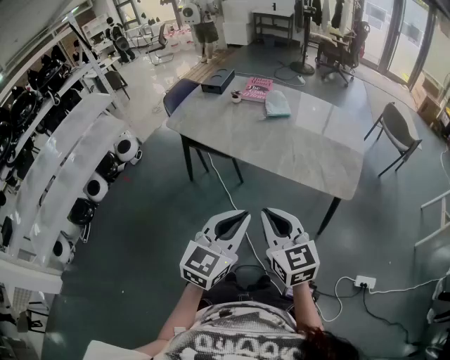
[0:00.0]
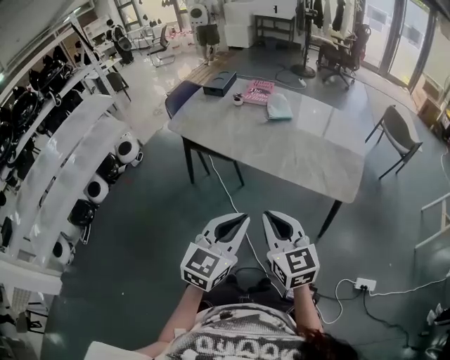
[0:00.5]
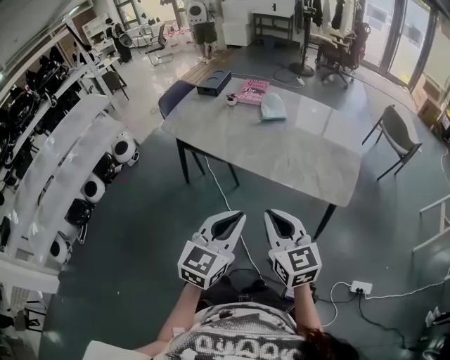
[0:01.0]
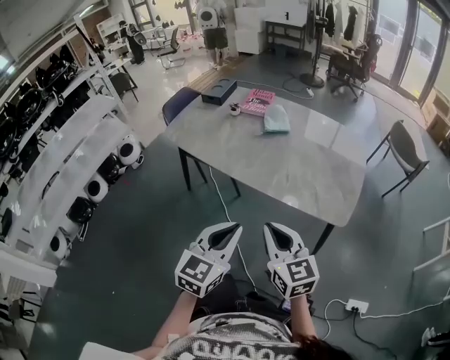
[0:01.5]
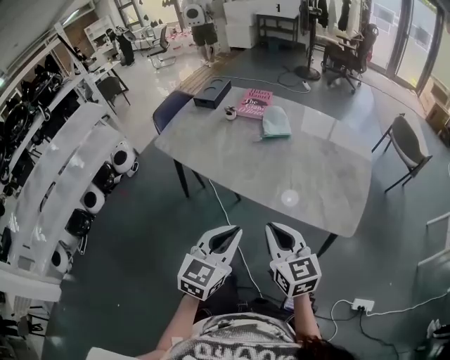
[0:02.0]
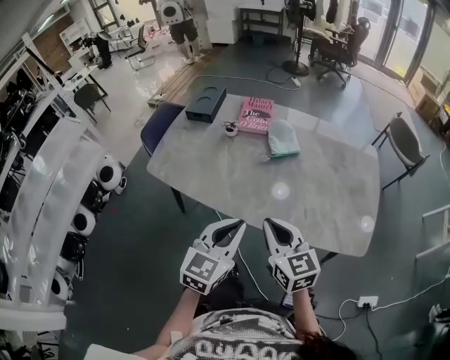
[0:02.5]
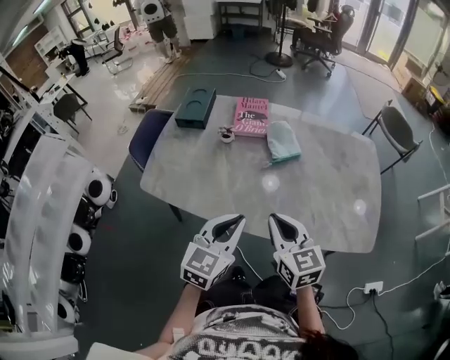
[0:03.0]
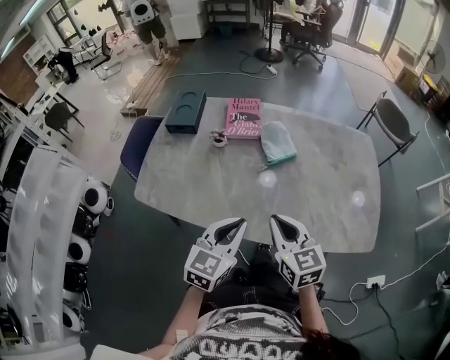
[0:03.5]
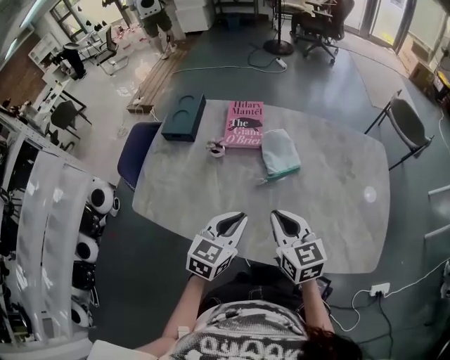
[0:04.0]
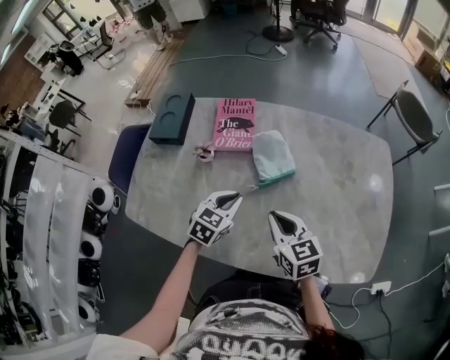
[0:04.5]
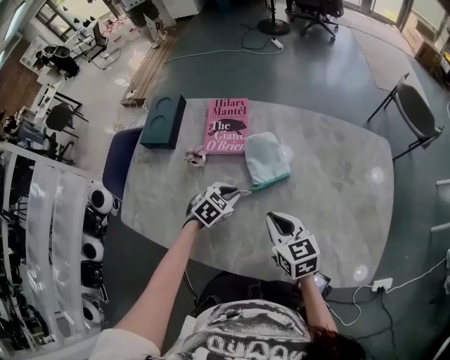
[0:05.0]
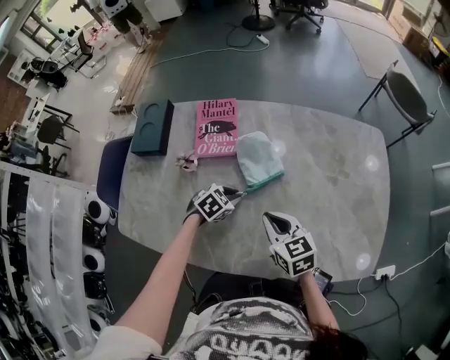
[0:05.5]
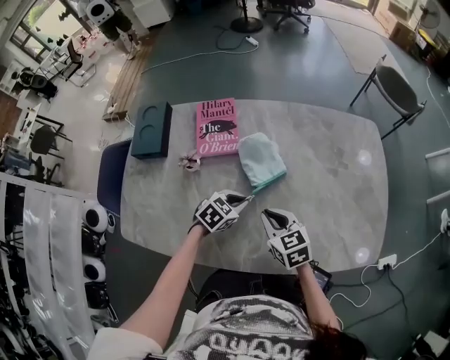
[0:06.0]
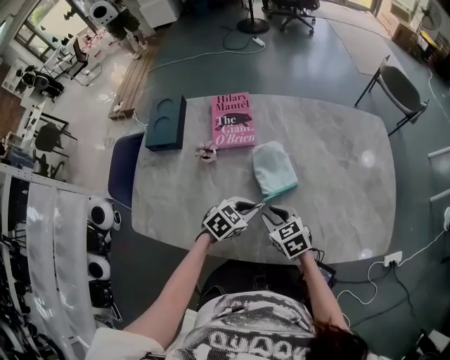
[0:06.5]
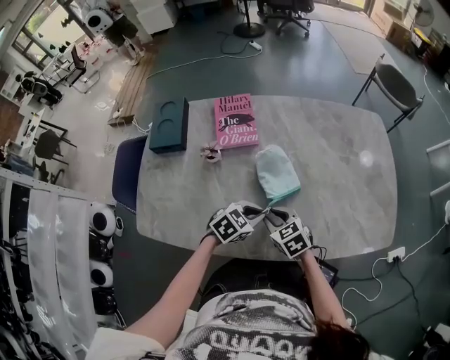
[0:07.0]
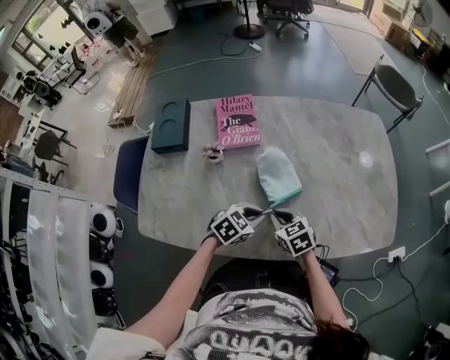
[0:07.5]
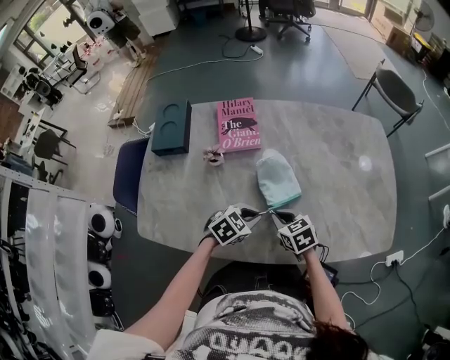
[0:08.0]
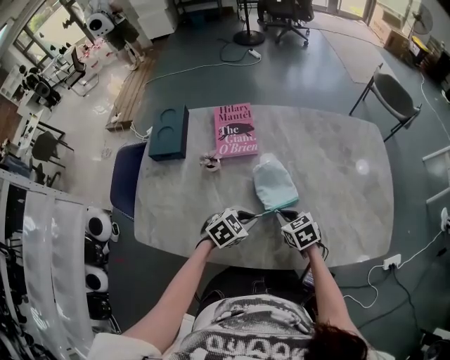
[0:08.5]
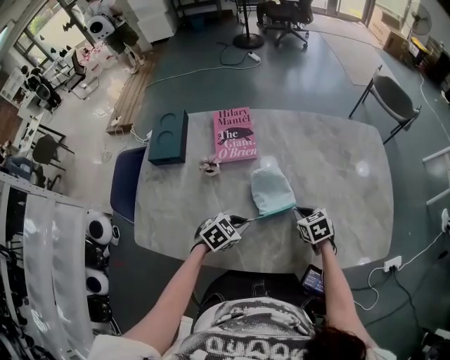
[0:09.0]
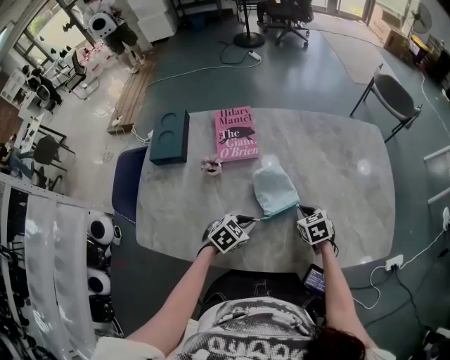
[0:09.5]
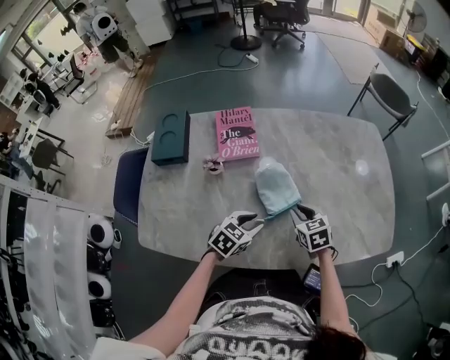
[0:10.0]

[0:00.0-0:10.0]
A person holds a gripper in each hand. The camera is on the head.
0:00.0 to 0:02.0: The left gripper goes approximately 15 cm forward and downward; the right gripper travels forward and to the right by approximately 15 cm.
0:02.0 to 0:04.0: The two grippers go roughly 35 cm forward.
0:04.0 to 0:06.0: The left gripper heads downward and forward, covering some 20 cm, and swivels roughly 40 degrees, while the right gripper heads downward and forward, covering some 15 cm.
0:06.0 to 0:08.0: The left gripper heads backward, covering approximately 10 cm. The right gripper is displaced downward by about 5 cm, and opens, then closes again.
0:08.0 to 0:10.0: The right gripper is displaced to the right and forward by roughly 10 cm; the left gripper opens its fingers.

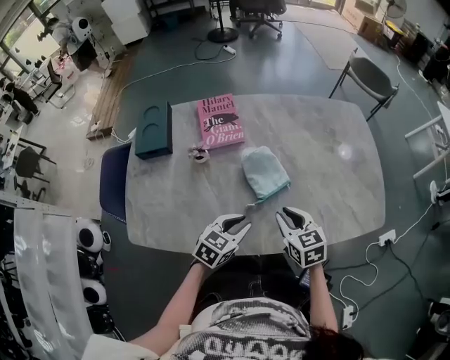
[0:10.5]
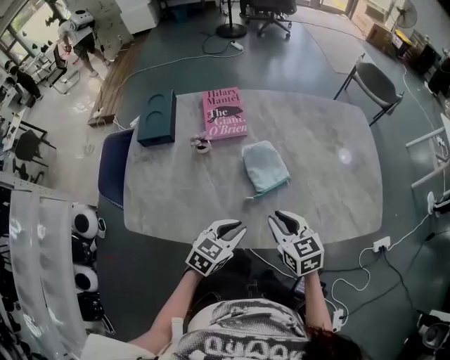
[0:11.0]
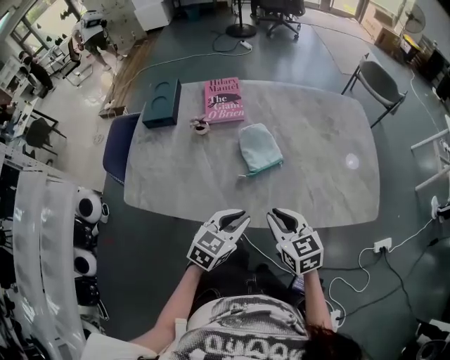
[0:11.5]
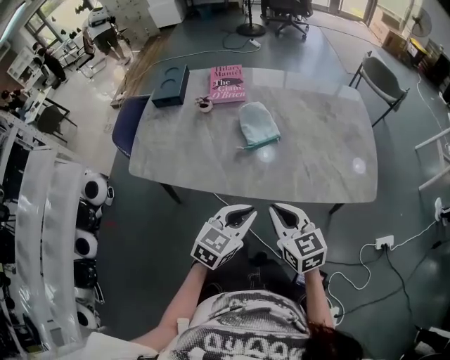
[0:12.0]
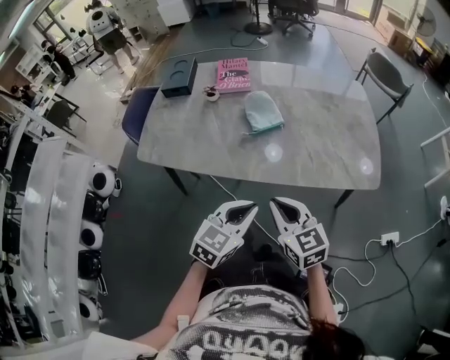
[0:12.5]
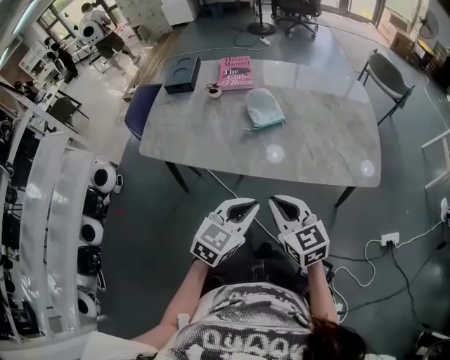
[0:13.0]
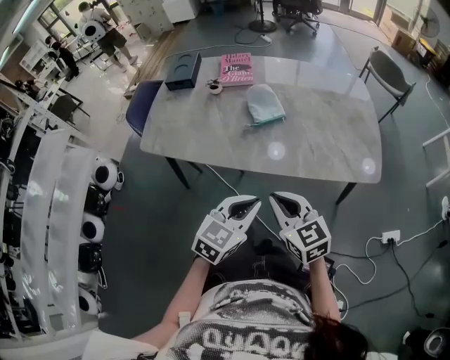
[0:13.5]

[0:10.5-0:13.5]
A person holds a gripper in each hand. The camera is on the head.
0:10.5 to 0:12.0: The right gripper shifts about 20 cm backward, and closes; the left gripper shifts roughly 20 cm backward, to the right and upward.
0:12.0 to 0:13.5: Both grippers travel together backward, approximately 5 cm.

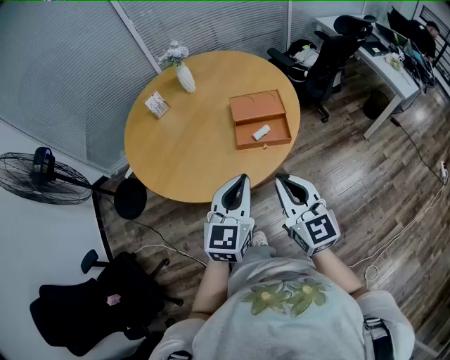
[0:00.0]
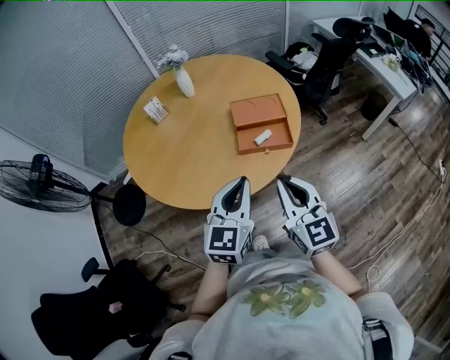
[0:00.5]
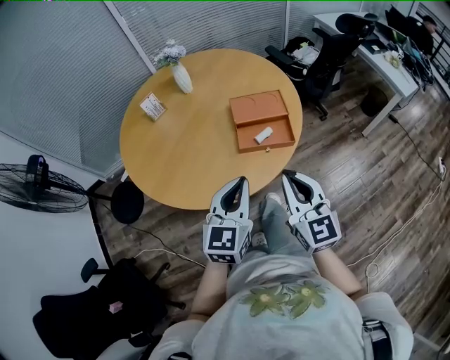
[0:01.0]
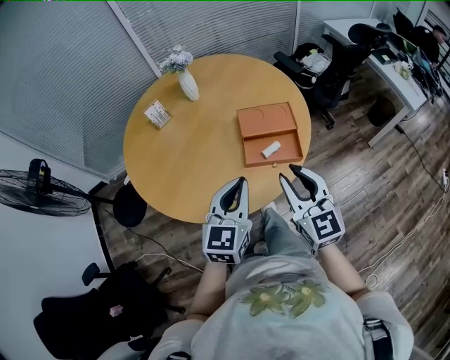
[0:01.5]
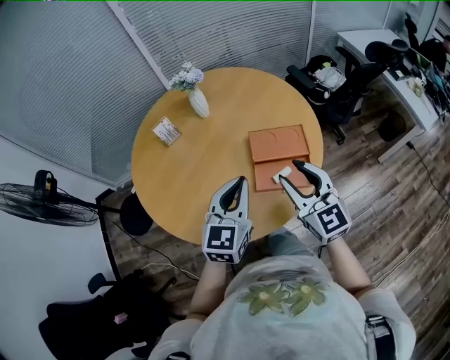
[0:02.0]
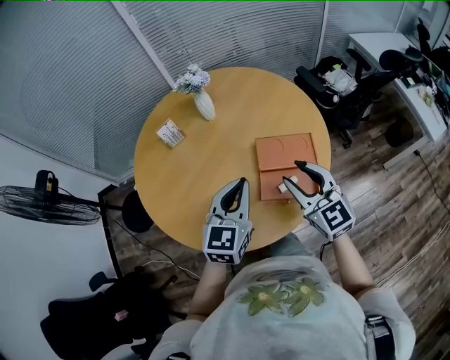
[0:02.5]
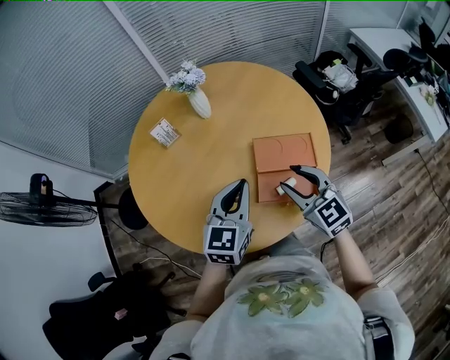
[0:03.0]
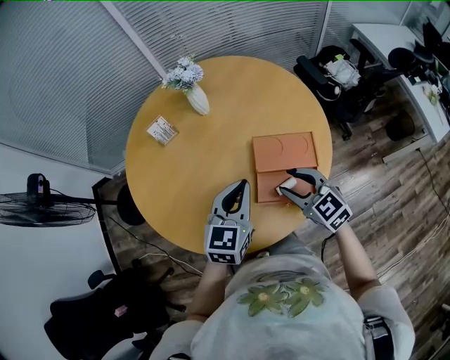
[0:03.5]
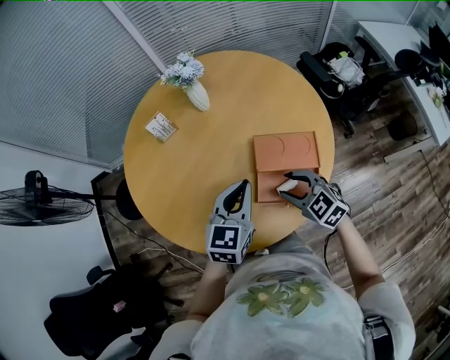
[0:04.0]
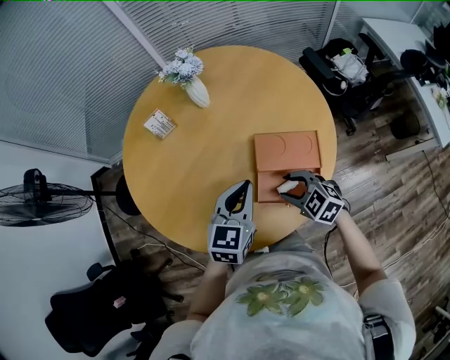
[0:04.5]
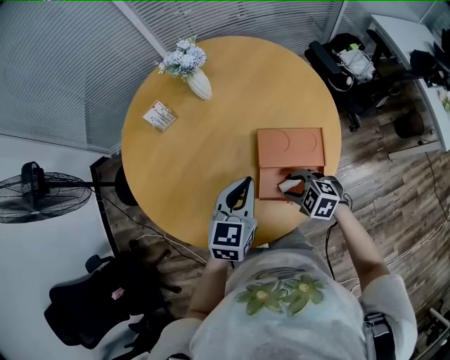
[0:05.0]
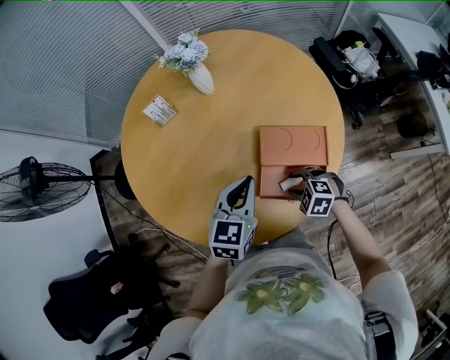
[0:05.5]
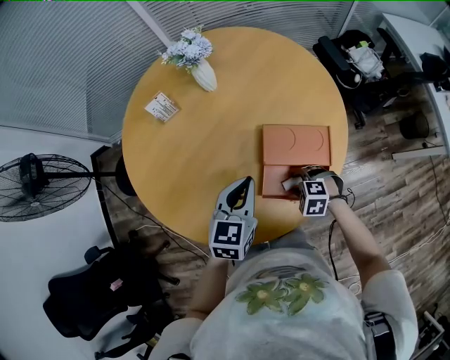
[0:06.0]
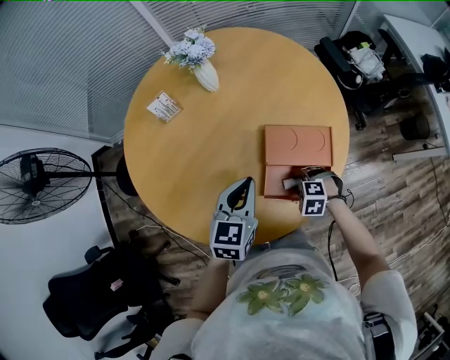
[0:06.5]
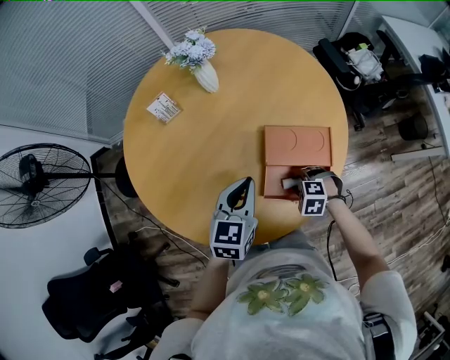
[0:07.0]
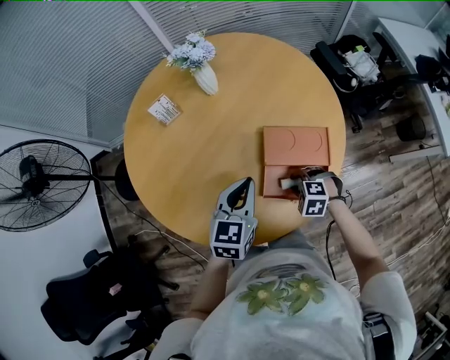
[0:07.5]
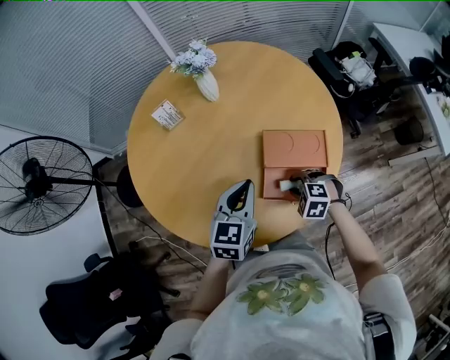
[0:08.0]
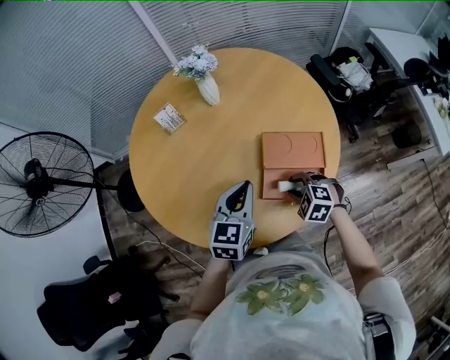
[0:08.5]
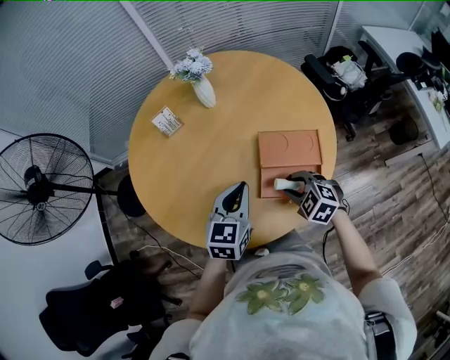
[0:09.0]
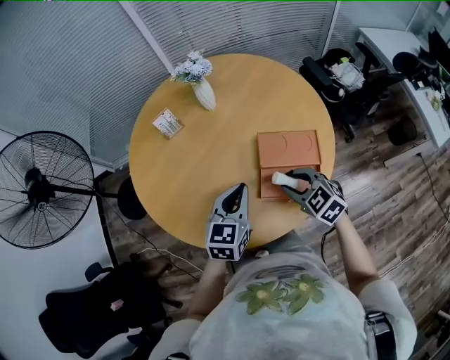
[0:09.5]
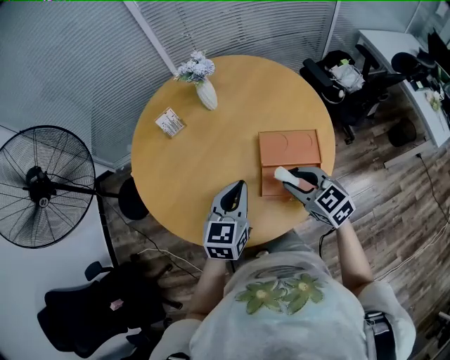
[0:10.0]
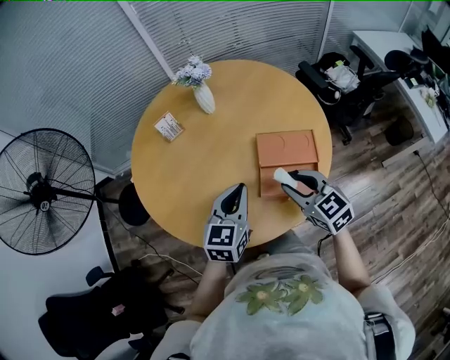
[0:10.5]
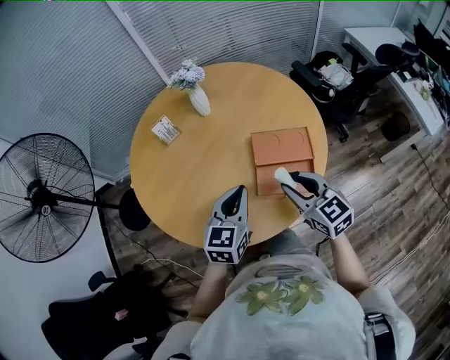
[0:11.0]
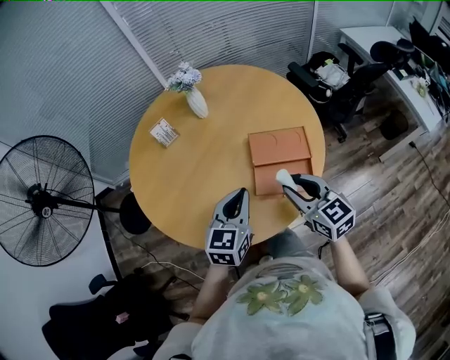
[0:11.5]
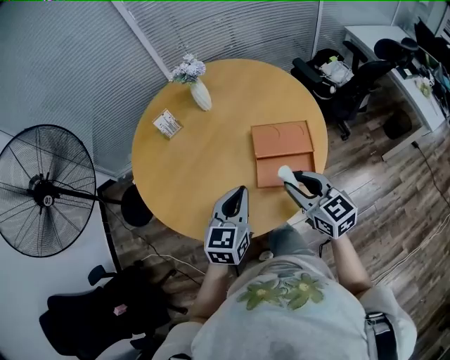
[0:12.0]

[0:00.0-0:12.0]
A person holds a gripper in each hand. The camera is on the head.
0:00.0 to 0:02.0: Both grippers travel together forward, about 20 cm. The right gripper opens up.
0:02.0 to 0:04.0: The left gripper is displaced forward and downward by approximately 15 cm; the right gripper is displaced downward and forward by about 20 cm, and tilts its fingers approximately 30 degrees downward.
0:04.0 to 0:06.0: The right gripper travels downward by some 15 cm, and points its fingers roughly 30 degrees further downward; the left gripper moves downward, approximately 5 cm.
0:06.0 to 0:08.0: The right gripper ends up some 5 cm from where it was.
0:08.0 to 0:10.0: The left gripper ends up roughly 5 cm from where it was. The right gripper moves upward, approximately 15 cm, and tips its fingers upward by about 40 degrees.
0:10.0 to 0:12.0: Both grippers travel together backward, roughly 5 cm.

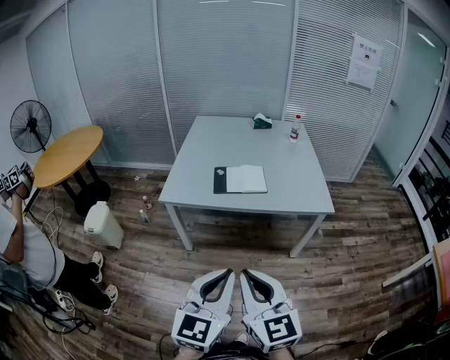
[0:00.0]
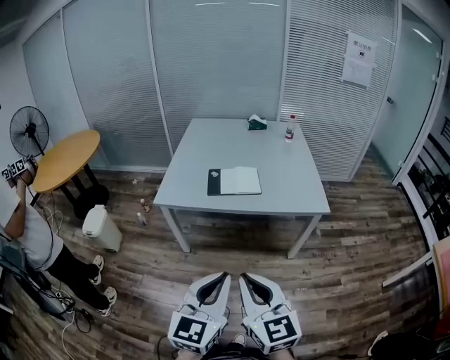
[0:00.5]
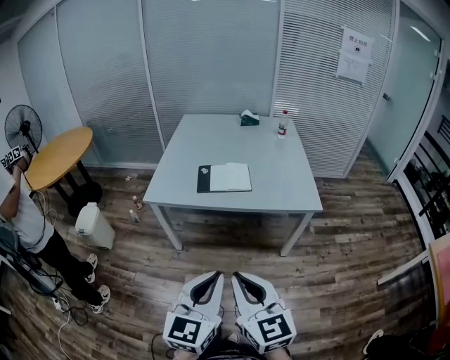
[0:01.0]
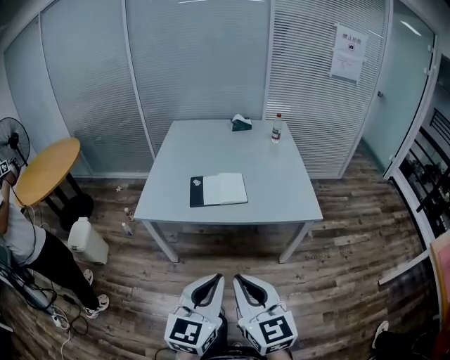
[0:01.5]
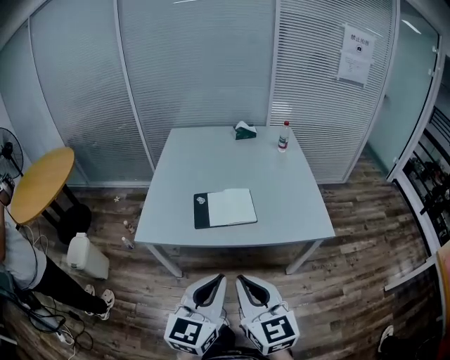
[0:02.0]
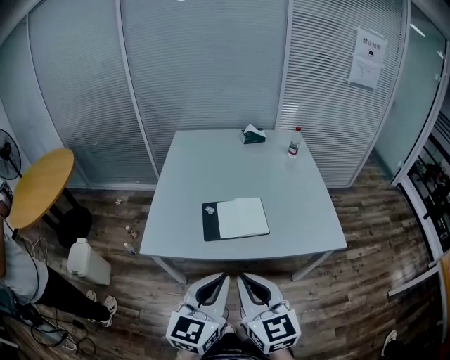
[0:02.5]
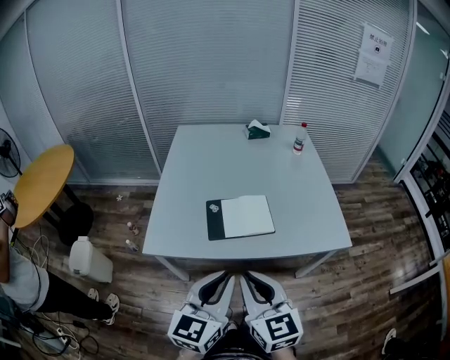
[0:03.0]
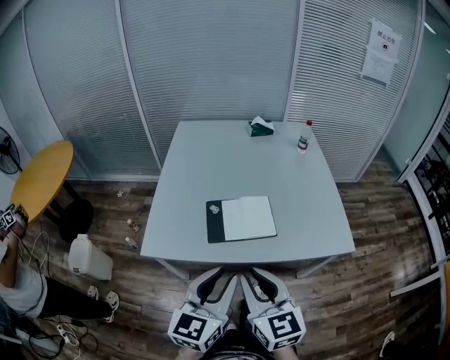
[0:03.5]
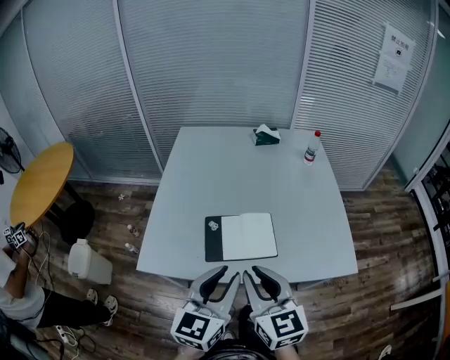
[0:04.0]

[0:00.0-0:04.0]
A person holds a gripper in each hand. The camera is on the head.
0:00.0 to 0:02.0: Both grippers move forward, approximately 20 cm.
0:02.0 to 0:04.0: The two grippers go some 20 cm forward. The left gripper opens up.
